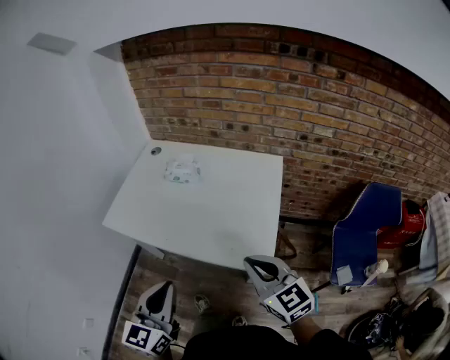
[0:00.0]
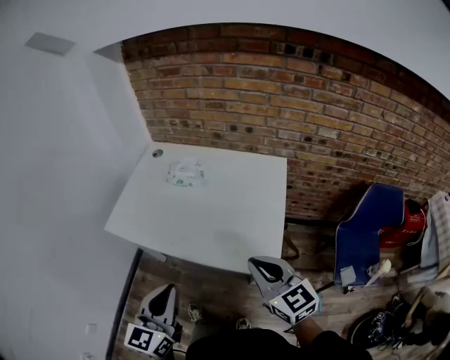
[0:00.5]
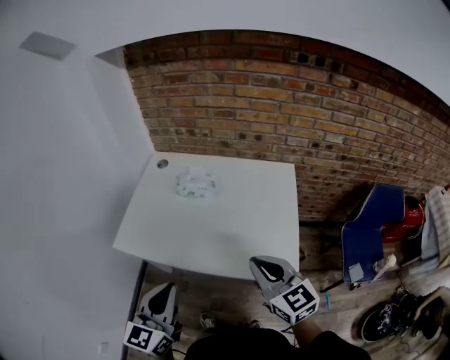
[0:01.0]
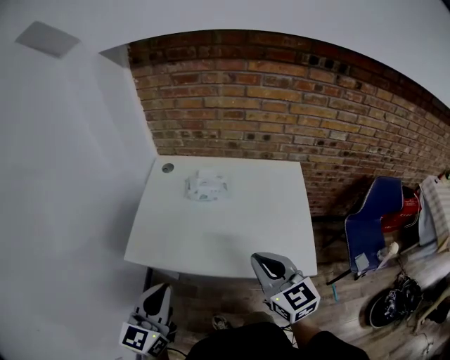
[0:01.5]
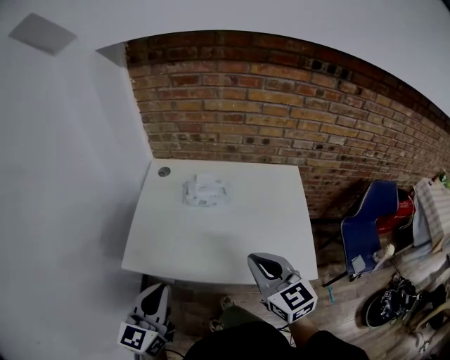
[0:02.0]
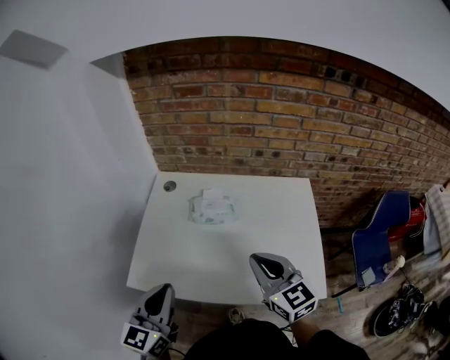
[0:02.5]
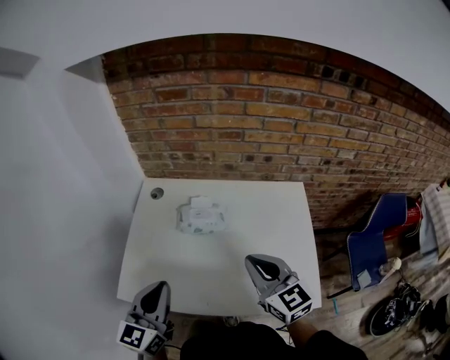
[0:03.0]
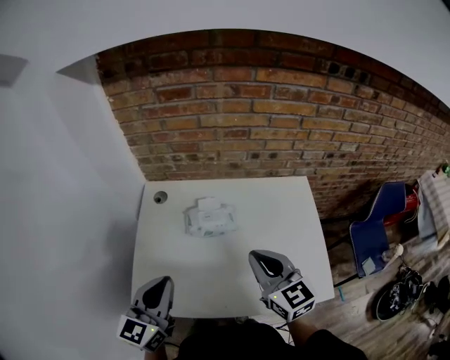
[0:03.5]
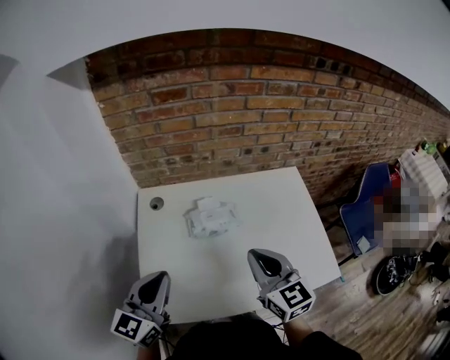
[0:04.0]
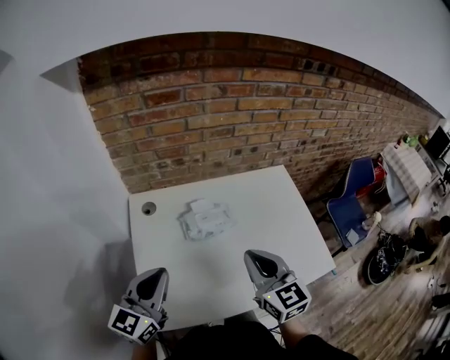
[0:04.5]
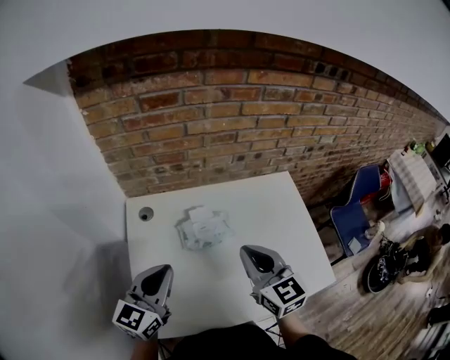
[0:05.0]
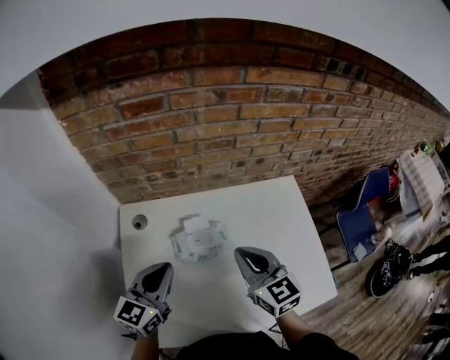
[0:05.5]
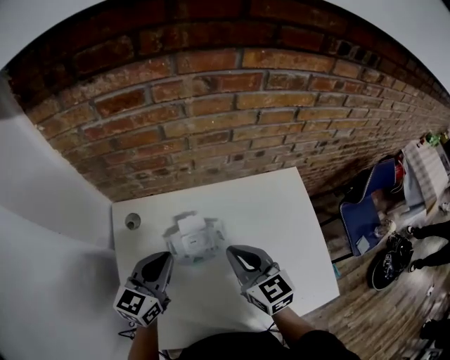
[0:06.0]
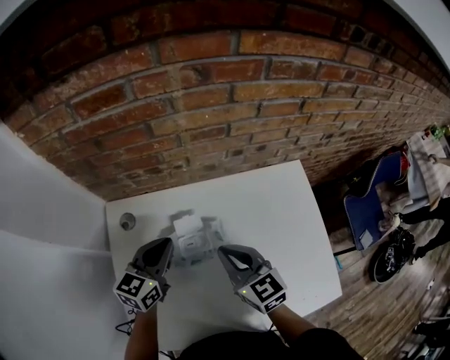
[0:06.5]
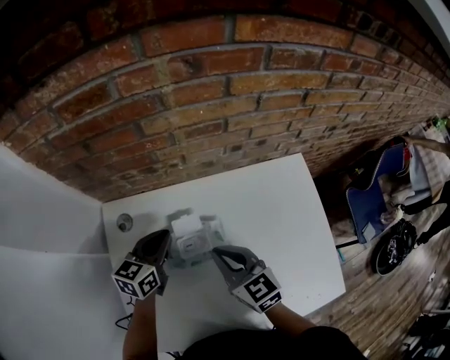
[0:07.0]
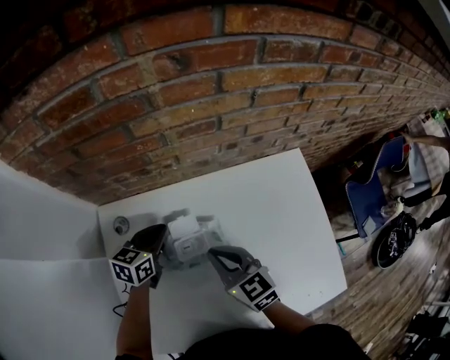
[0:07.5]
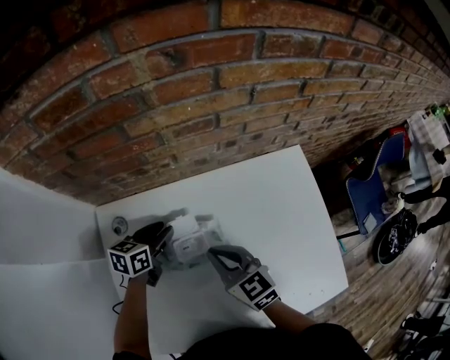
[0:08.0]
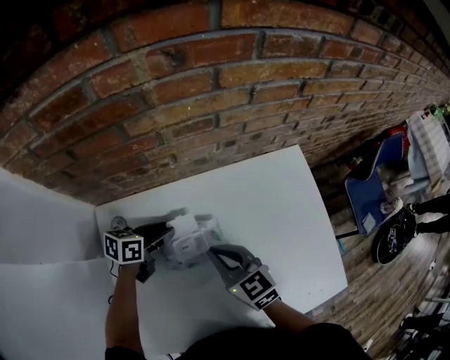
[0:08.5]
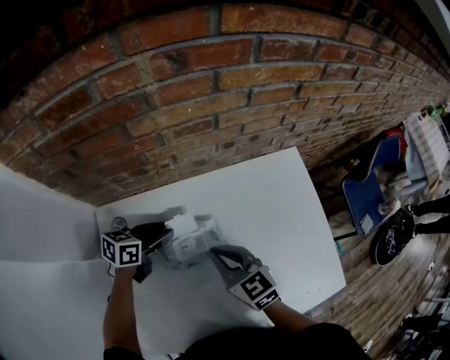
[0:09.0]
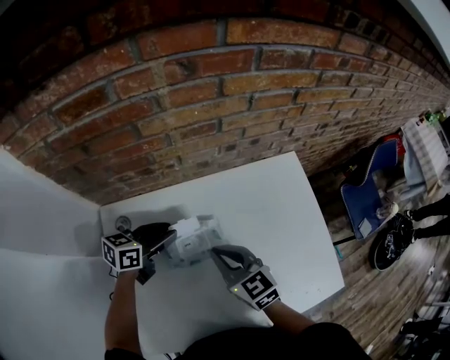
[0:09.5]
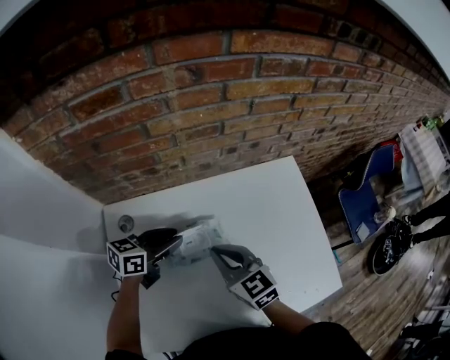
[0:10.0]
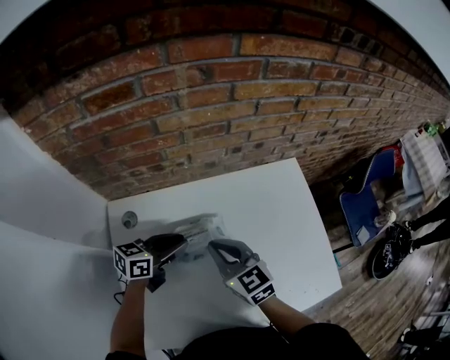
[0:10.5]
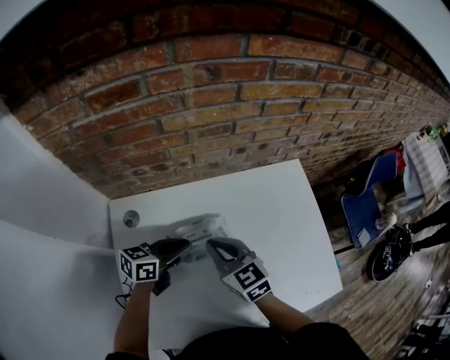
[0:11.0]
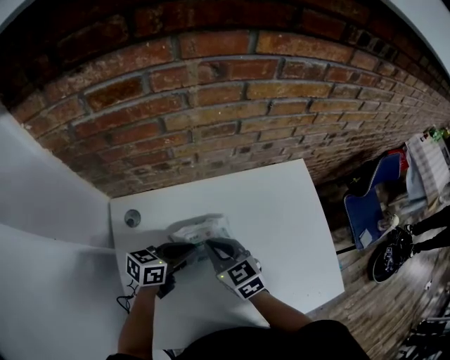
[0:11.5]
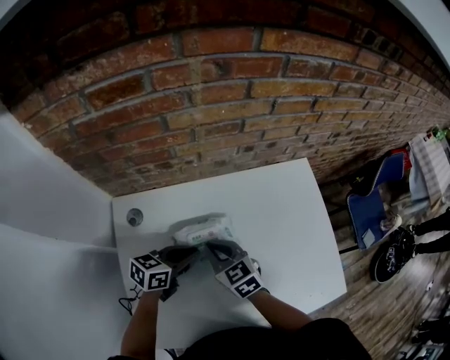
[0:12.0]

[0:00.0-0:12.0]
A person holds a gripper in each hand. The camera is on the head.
0:00.0 to 0:02.0: Both grippers travel together to the left and forward, roughly 25 cm.
0:02.0 to 0:04.0: The left gripper goes about 25 cm forward, and changes its angle by approximately 20 degrees; the right gripper travels forward and to the left by some 15 cm.
0:04.0 to 0:06.0: The two grippers go roughly 20 cm forward and downward.
0:06.0 to 0:08.0: The left gripper is displaced downward and forward by about 20 cm, changes its angle by about 30 degrees, and opens up. The right gripper shifts some 10 cm downward.
0:08.0 to 0:10.0: The left gripper goes approximately 5 cm upward, and rotates roughly 20 degrees.
0:10.0 to 0:12.0: The left gripper is displaced backward by roughly 5 cm, and closes, while the right gripper goes approximately 10 cm downward and to the left.

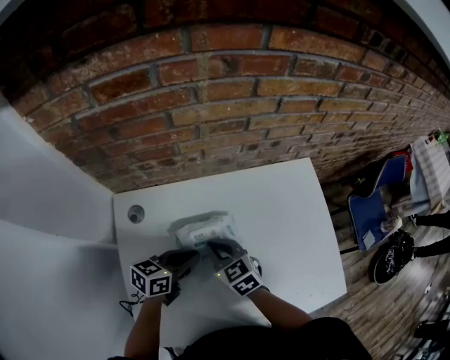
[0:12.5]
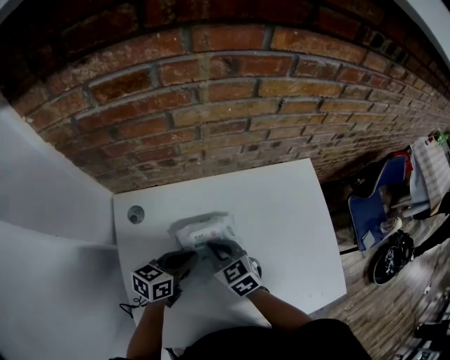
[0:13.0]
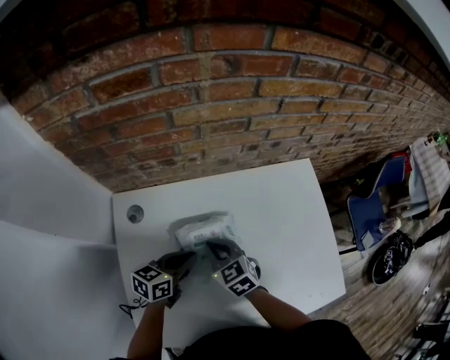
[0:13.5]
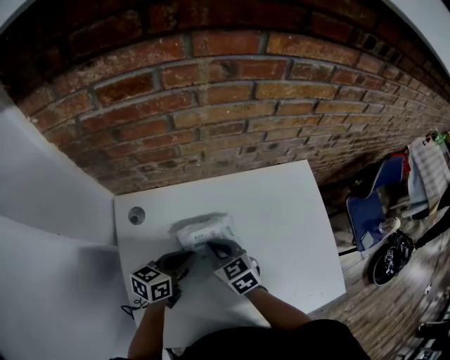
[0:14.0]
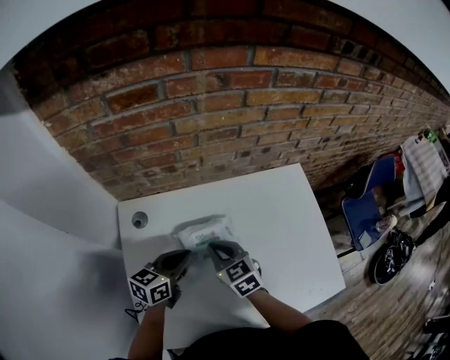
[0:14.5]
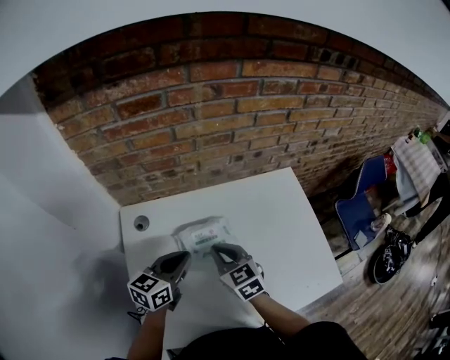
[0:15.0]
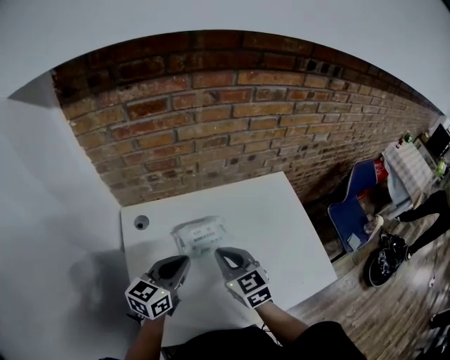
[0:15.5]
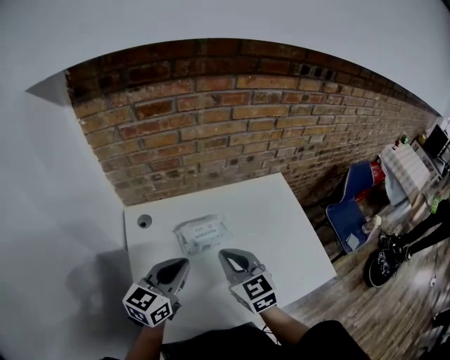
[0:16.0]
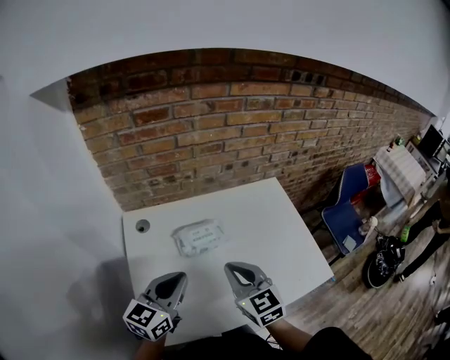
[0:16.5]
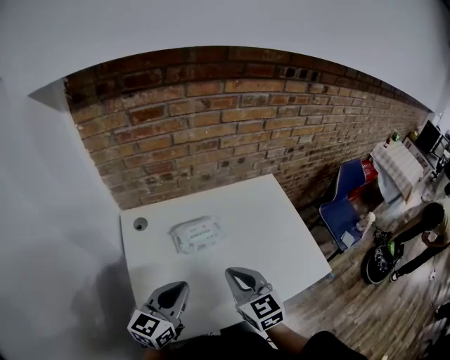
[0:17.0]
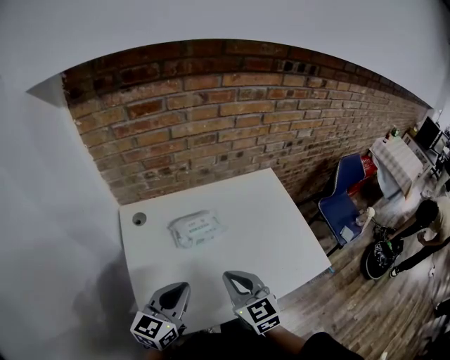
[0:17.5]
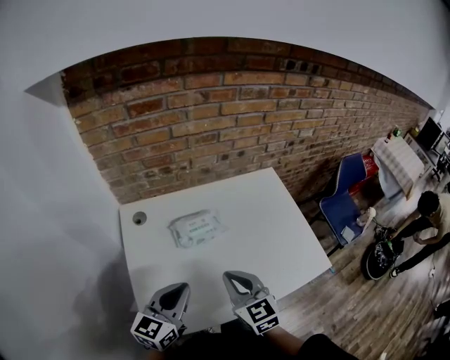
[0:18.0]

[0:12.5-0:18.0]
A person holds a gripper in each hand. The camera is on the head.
0:12.5 to 0:14.5: The grippers stay close to where they were, moving slightly.
0:14.5 to 0:16.0: Both grippers move upward and backward, roughly 15 cm. The left gripper swivels approximately 20 degrees.
0:16.0 to 0:18.0: The grippers both shift backward by about 10 cm.

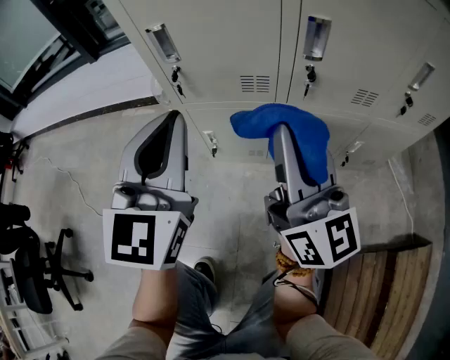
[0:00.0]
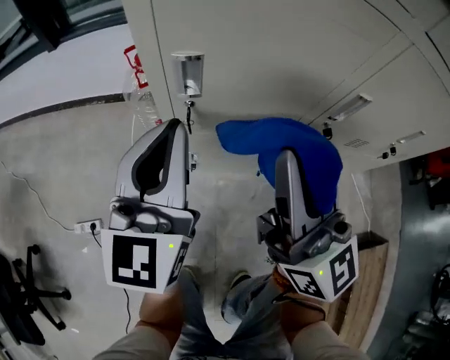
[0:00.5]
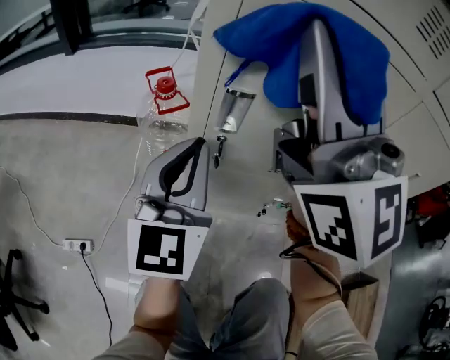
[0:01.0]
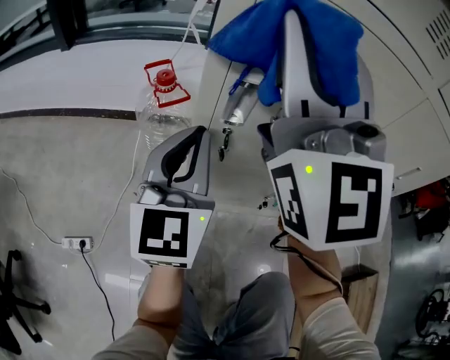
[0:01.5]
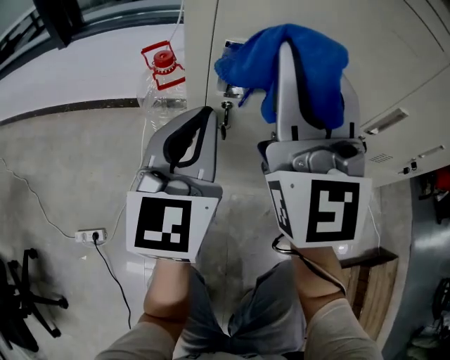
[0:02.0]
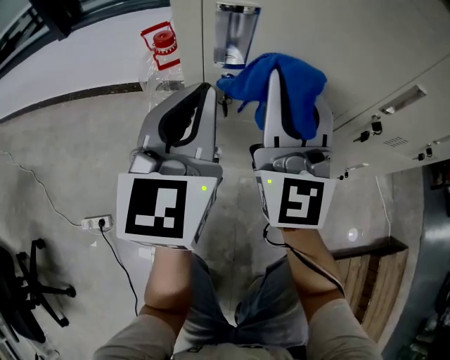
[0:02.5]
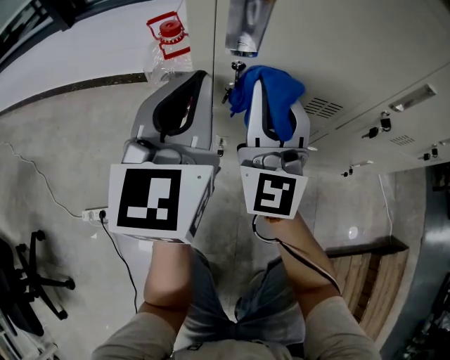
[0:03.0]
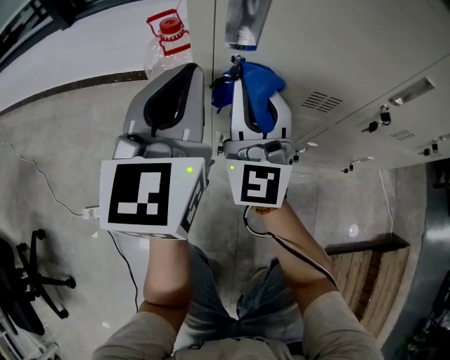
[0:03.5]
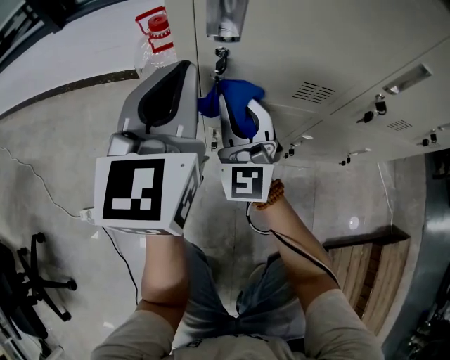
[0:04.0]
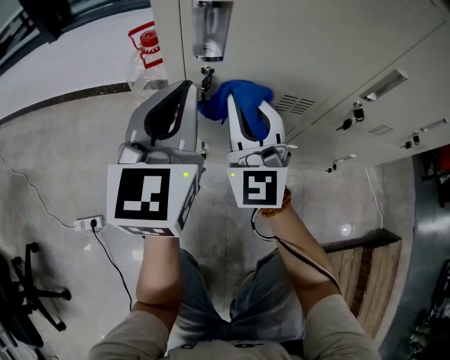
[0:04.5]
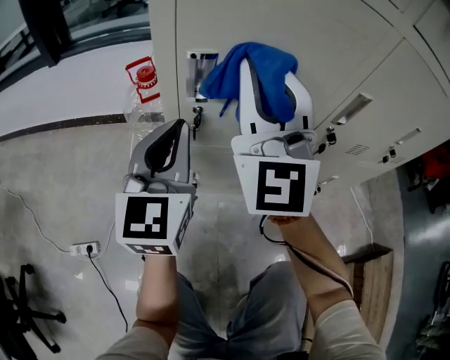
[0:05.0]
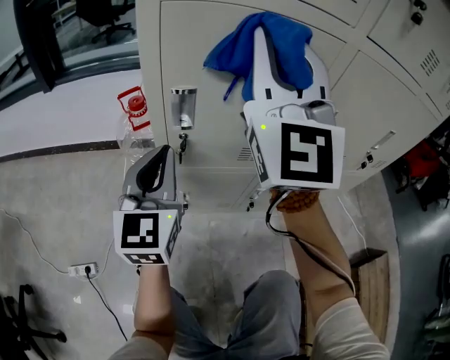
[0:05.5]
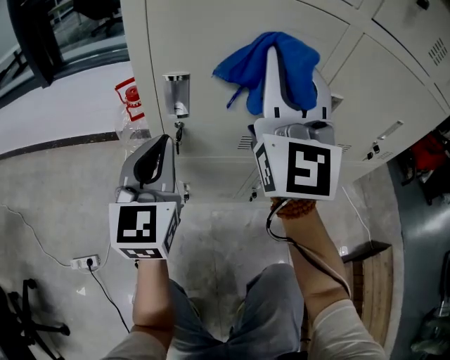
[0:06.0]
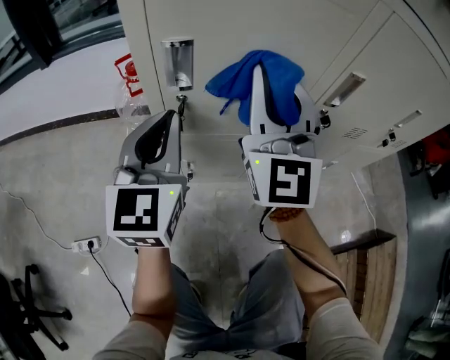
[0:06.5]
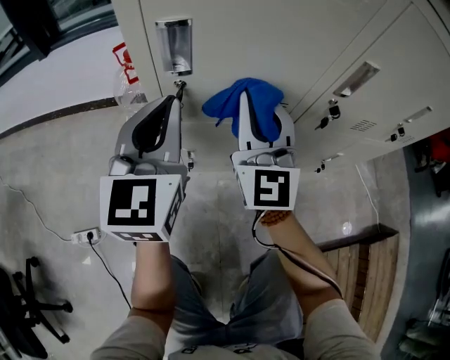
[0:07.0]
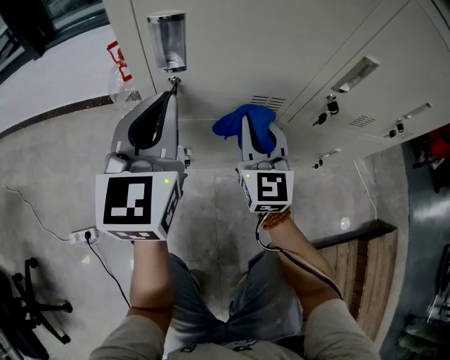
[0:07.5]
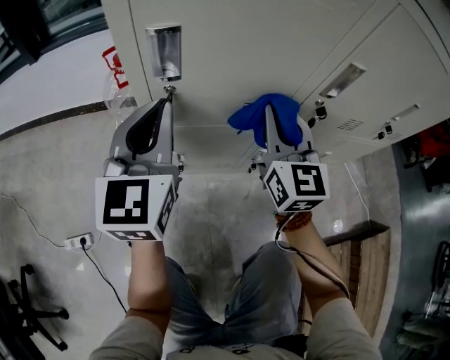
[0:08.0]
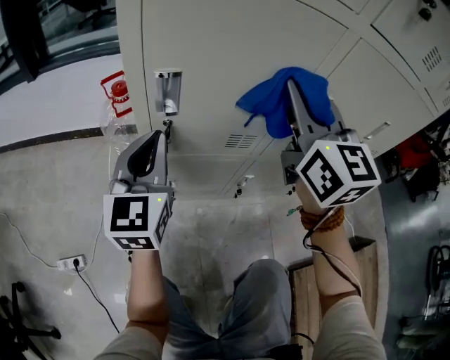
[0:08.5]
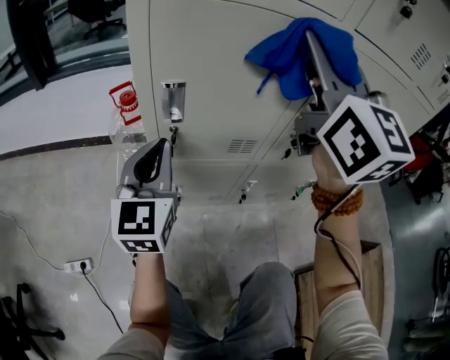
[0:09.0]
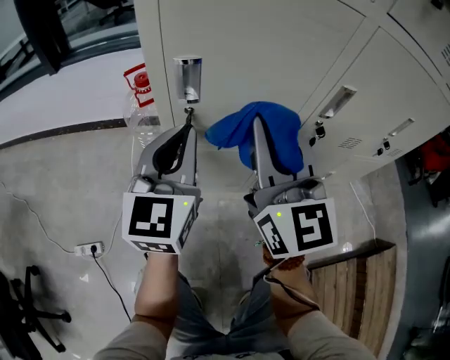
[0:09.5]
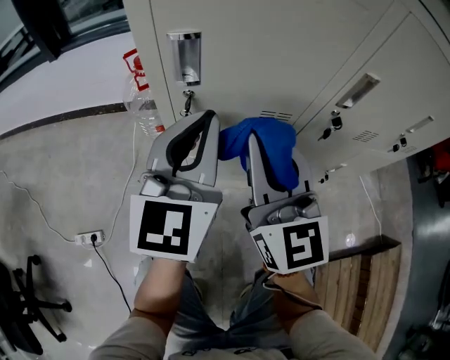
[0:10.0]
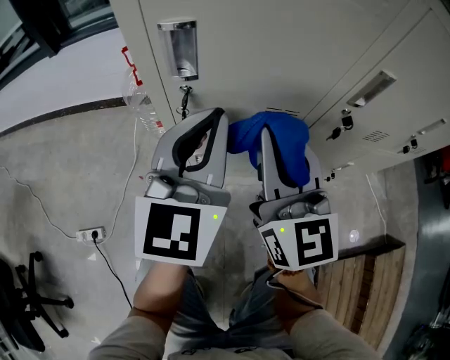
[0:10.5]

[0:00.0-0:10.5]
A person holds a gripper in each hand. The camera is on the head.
0:00.0 to 0:02.0: The right gripper goes approximately 30 cm forward, to the left and upward, and turns by approximately 40 degrees, while the left gripper shifts roughly 20 cm forward and to the left.
0:02.0 to 0:04.0: The right gripper goes approximately 25 cm downward.
0:04.0 to 0:06.5: The right gripper is displaced upward and to the right by about 20 cm.
0:06.5 to 0:08.5: The right gripper heads to the right, covering about 5 cm, reaches roughly 20 cm downward, then returns, and swivels some 20 degrees.
0:08.5 to 0:10.5: The left gripper heads to the right, covering about 5 cm. The right gripper travels downward, to the left and backward by roughly 15 cm.
